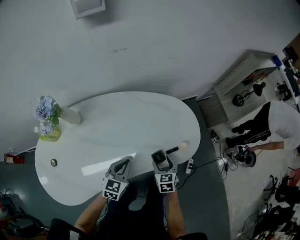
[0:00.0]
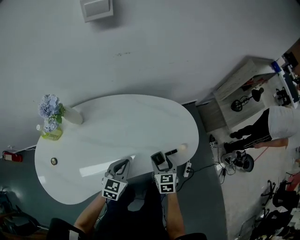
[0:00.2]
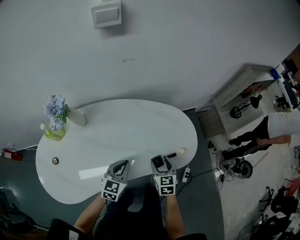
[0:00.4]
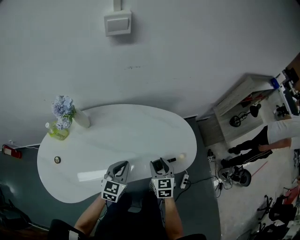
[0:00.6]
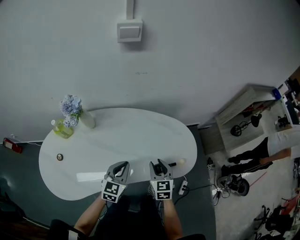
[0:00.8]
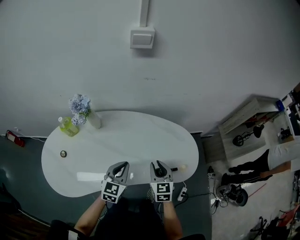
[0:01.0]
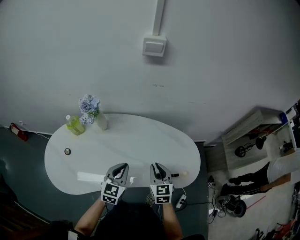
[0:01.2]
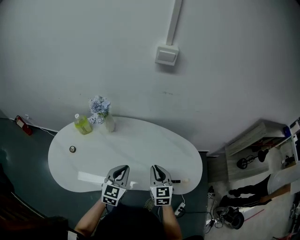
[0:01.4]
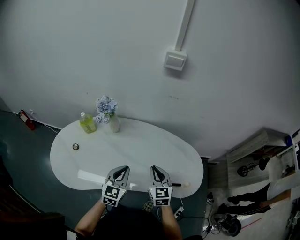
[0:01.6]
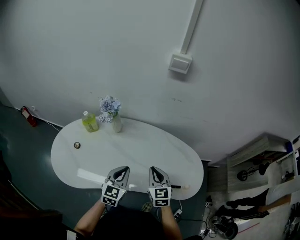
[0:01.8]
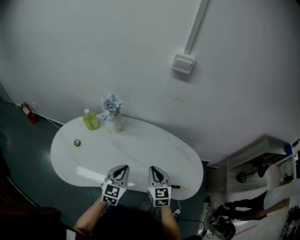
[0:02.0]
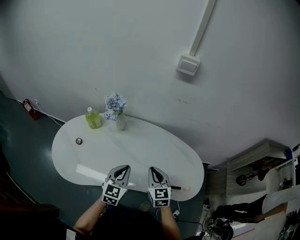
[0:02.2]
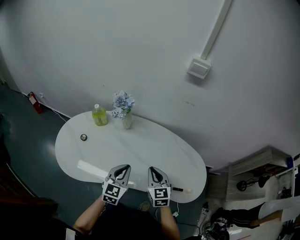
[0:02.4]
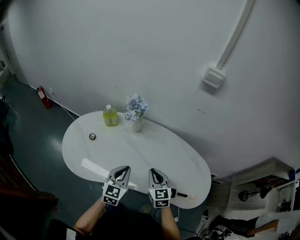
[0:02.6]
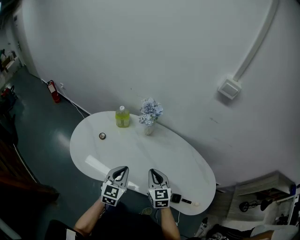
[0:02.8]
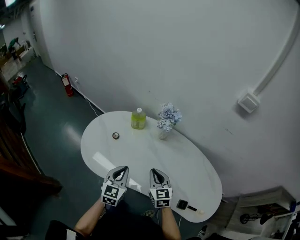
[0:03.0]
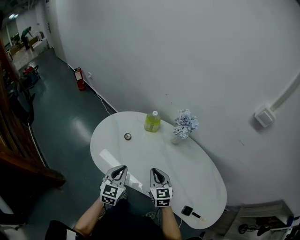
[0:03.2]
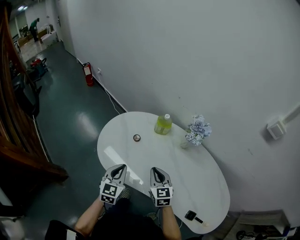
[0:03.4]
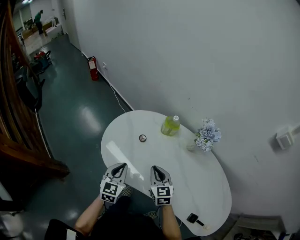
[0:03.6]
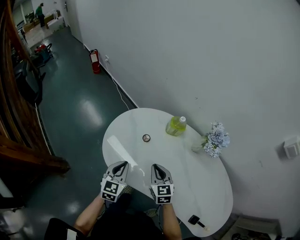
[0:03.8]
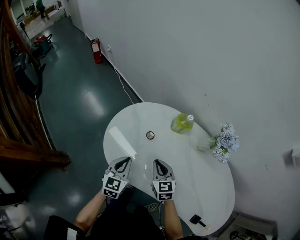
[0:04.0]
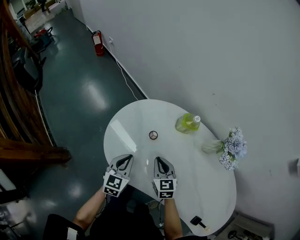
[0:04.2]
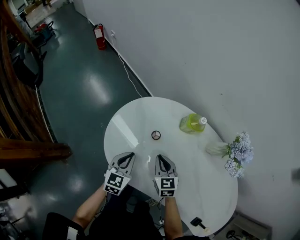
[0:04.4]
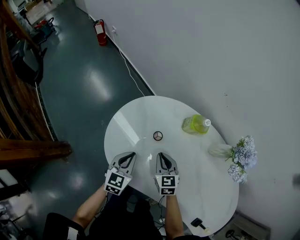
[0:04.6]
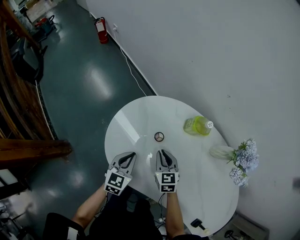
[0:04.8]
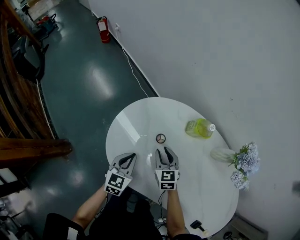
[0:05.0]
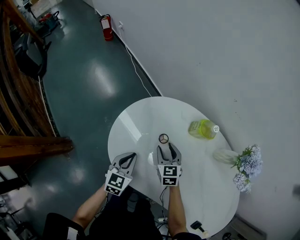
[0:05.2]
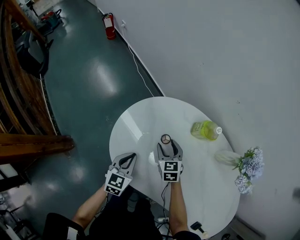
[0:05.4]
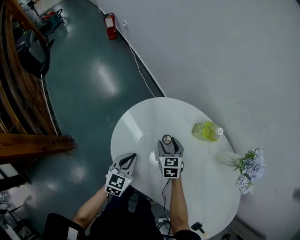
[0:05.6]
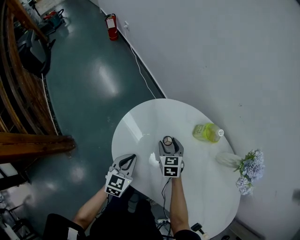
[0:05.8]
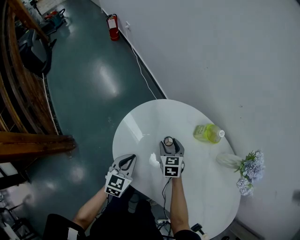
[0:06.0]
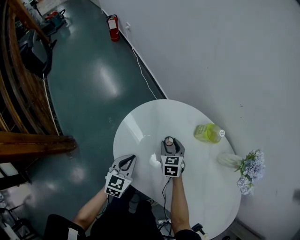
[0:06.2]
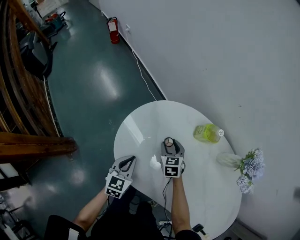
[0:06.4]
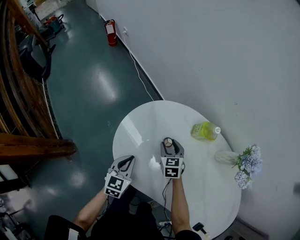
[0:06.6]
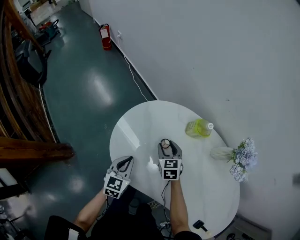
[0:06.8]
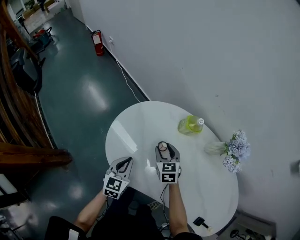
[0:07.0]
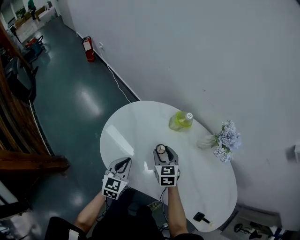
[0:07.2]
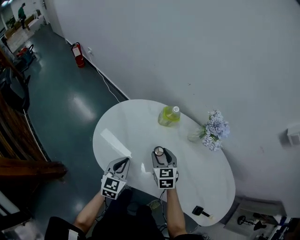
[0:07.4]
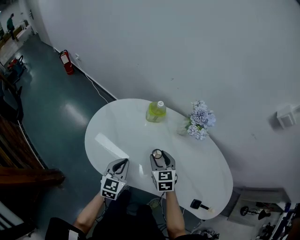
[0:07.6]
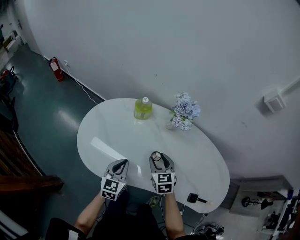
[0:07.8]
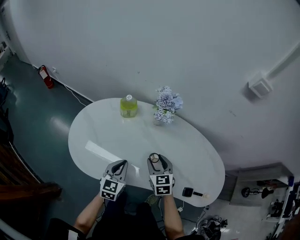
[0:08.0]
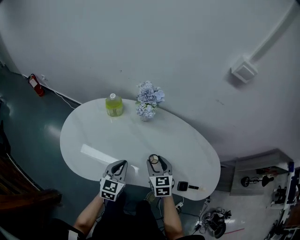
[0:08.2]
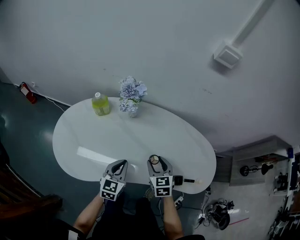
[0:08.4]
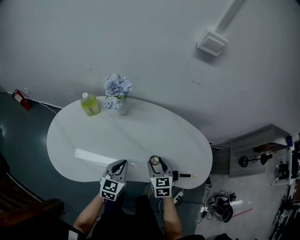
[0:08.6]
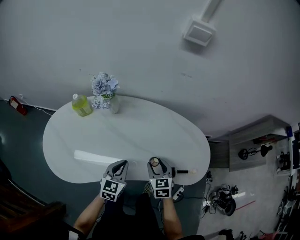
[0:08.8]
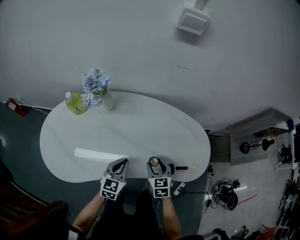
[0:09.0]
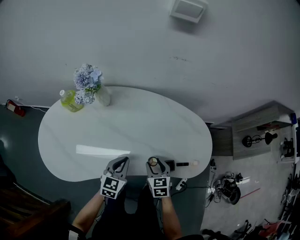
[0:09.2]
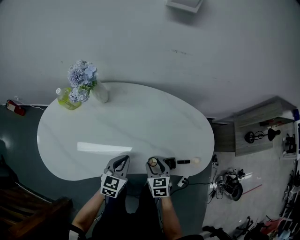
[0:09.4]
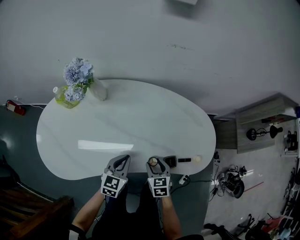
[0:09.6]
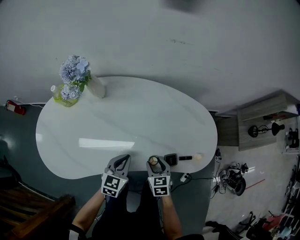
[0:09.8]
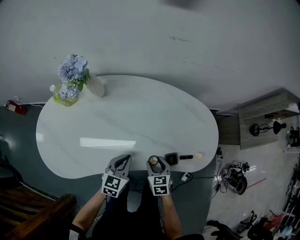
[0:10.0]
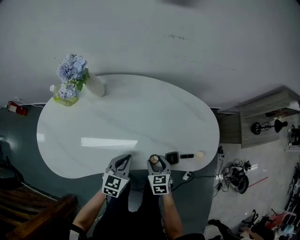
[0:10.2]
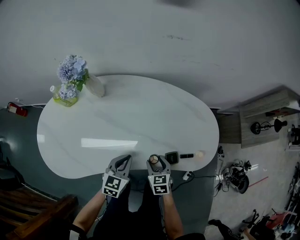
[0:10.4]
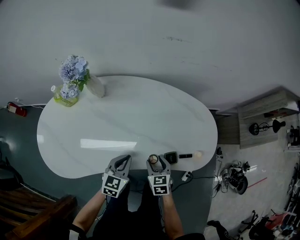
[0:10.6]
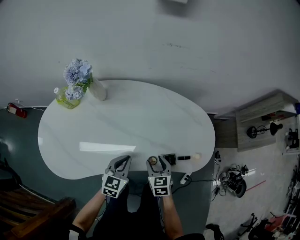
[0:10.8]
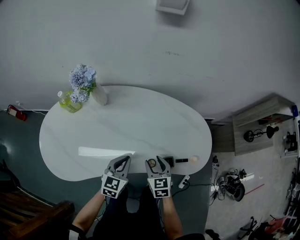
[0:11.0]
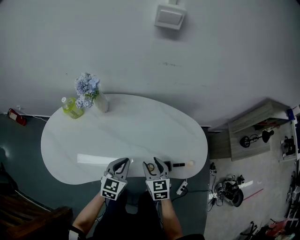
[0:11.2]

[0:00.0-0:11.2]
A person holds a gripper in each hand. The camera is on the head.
0:00.0 to 0:01.6: The two grippers go approximately 20 cm upward. The left gripper changes its angle by roughly 30 degrees. Meanwhile the right gripper turns by about 40 degrees, and closes its fingers.
0:01.6 to 0:03.2: The right gripper moves roughly 30 cm, and swivels roughly 40 degrees, while the left gripper shifts by some 30 cm, and changes its angle by about 30 degrees.
0:03.2 to 0:04.8: The grippers both shift forward, downward and to the left by about 25 cm.
0:04.8 to 0:06.4: The right gripper is displaced forward by some 5 cm, and opens up.
0:06.4 to 0:08.0: The right gripper ends up approximately 35 cm from where it was, and changes its angle by approximately 30 degrees, while the left gripper changes place by some 30 cm, and changes its angle by approximately 30 degrees.
0:08.0 to 0:09.6: The right gripper is displaced to the right and downward by some 30 cm, and swivels about 30 degrees, while the left gripper travels to the right by about 25 cm, and turns by roughly 30 degrees.
0:09.6 to 0:11.2: The right gripper travels upward by some 10 cm; the left gripper is displaced upward by about 5 cm.

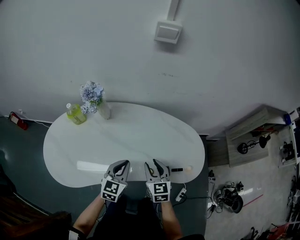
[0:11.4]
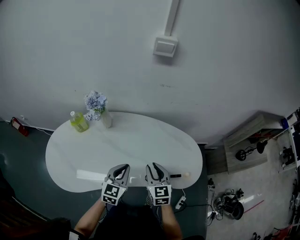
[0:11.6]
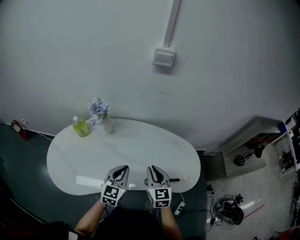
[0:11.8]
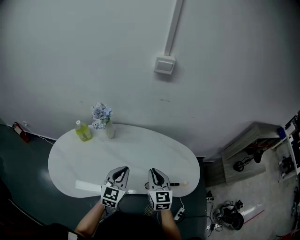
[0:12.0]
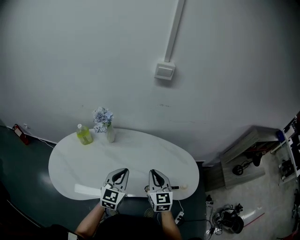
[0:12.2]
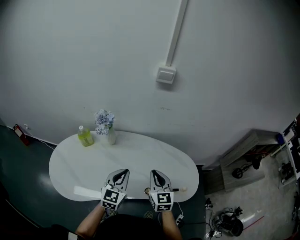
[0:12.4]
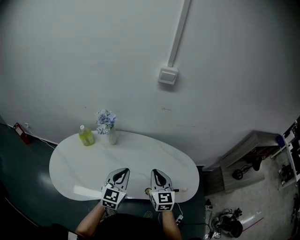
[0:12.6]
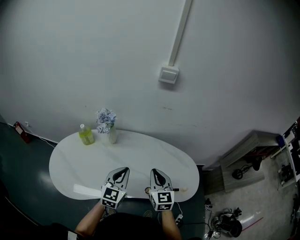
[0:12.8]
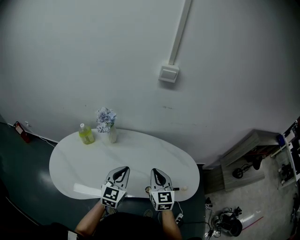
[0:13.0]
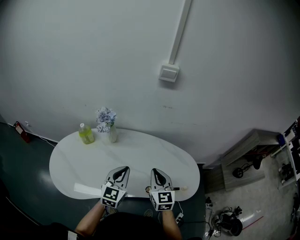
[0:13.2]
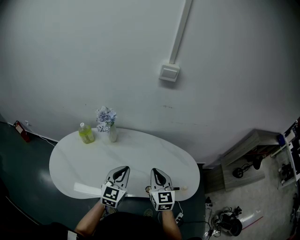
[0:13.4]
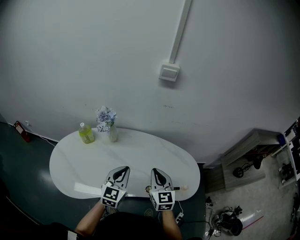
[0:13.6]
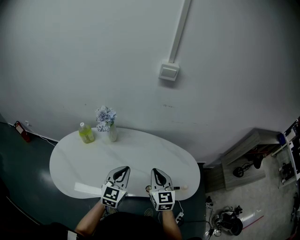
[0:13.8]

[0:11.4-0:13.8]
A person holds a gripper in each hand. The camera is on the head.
0:11.4 to 0:12.6: Both grippers travel together upward, roughly 10 cm. The right gripper closes its fingers.
0:12.6 to 0:13.8: The two grippers keep their place.

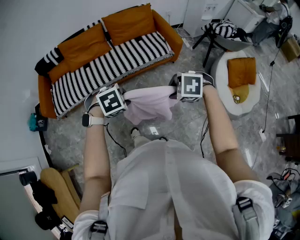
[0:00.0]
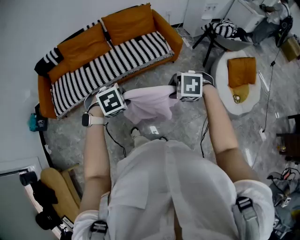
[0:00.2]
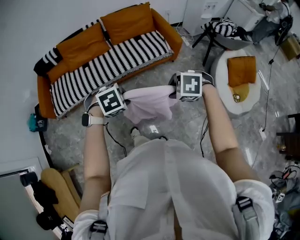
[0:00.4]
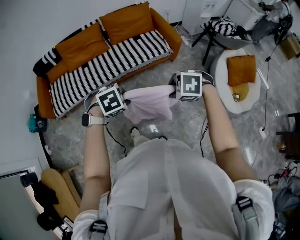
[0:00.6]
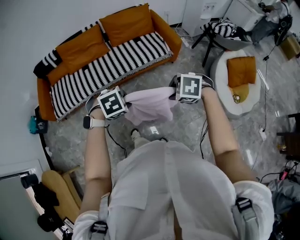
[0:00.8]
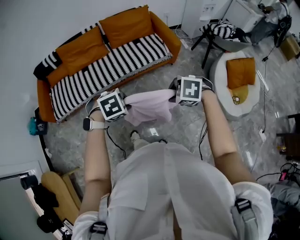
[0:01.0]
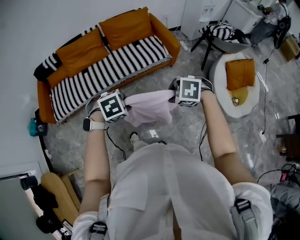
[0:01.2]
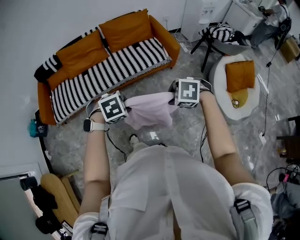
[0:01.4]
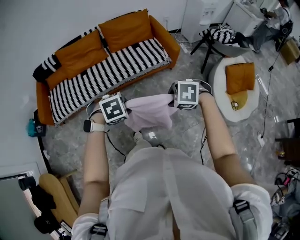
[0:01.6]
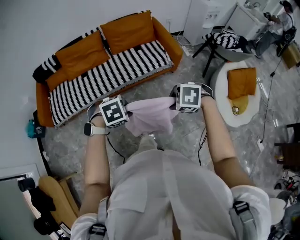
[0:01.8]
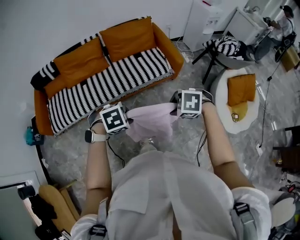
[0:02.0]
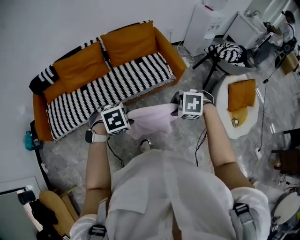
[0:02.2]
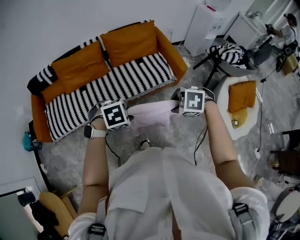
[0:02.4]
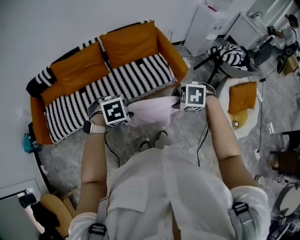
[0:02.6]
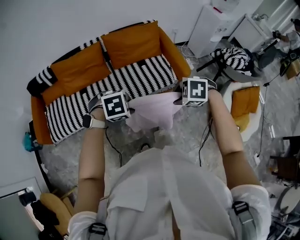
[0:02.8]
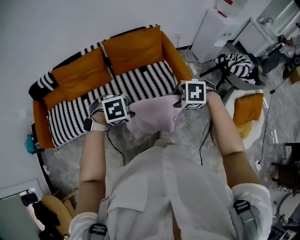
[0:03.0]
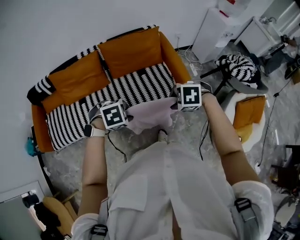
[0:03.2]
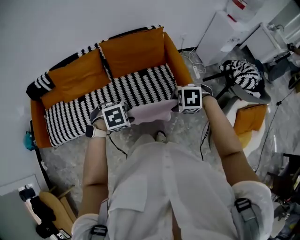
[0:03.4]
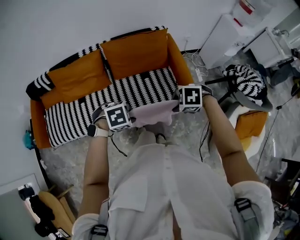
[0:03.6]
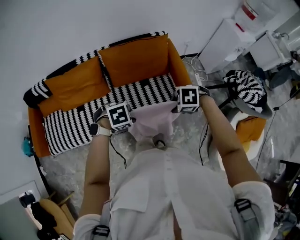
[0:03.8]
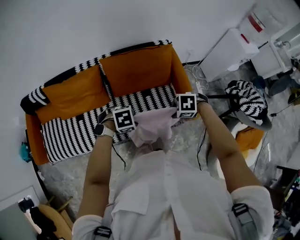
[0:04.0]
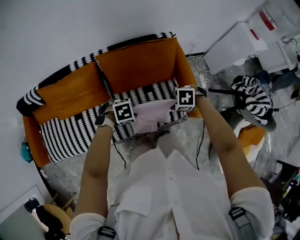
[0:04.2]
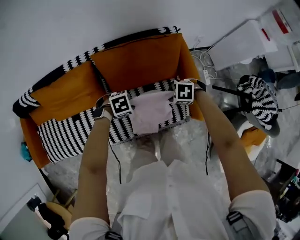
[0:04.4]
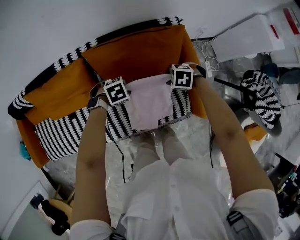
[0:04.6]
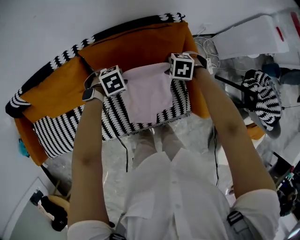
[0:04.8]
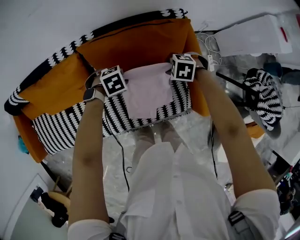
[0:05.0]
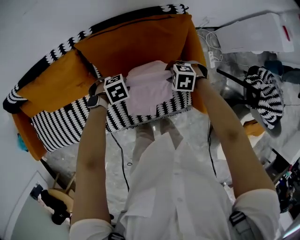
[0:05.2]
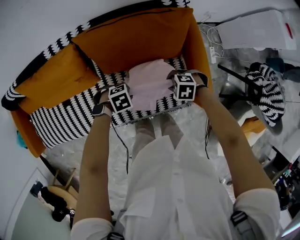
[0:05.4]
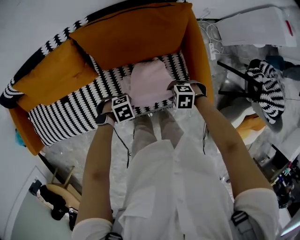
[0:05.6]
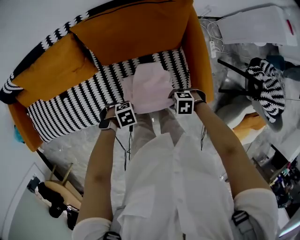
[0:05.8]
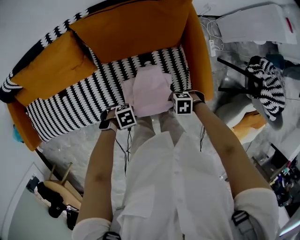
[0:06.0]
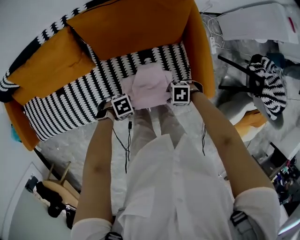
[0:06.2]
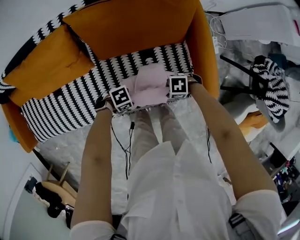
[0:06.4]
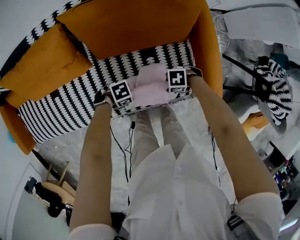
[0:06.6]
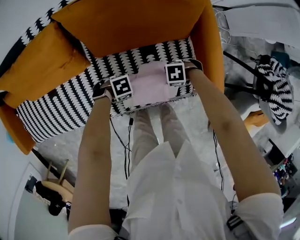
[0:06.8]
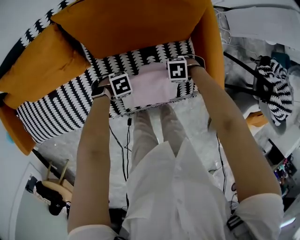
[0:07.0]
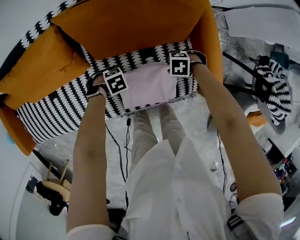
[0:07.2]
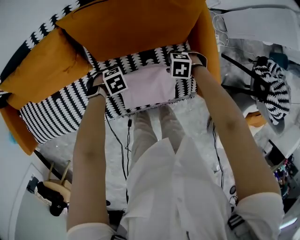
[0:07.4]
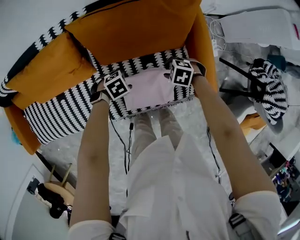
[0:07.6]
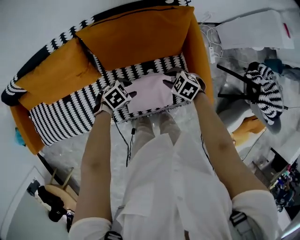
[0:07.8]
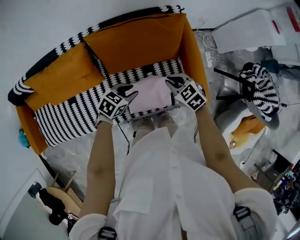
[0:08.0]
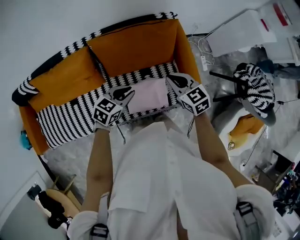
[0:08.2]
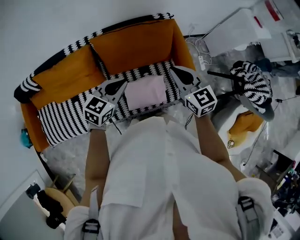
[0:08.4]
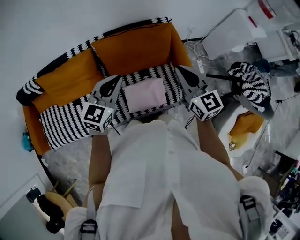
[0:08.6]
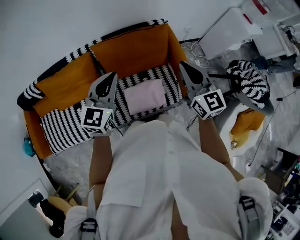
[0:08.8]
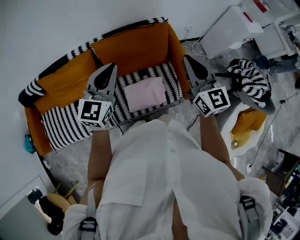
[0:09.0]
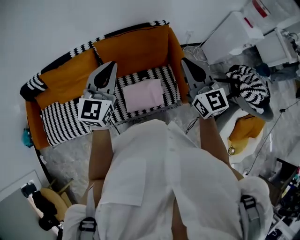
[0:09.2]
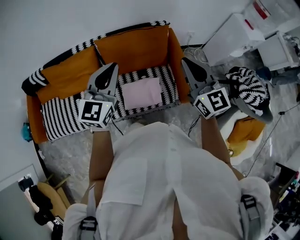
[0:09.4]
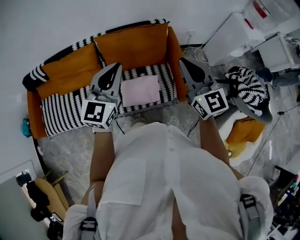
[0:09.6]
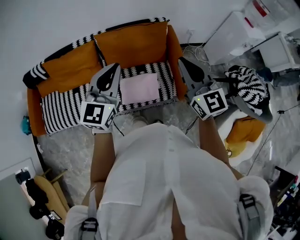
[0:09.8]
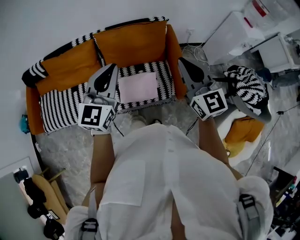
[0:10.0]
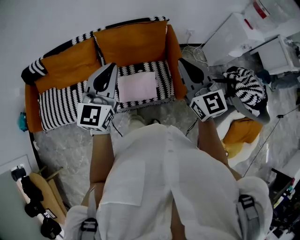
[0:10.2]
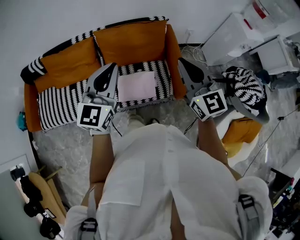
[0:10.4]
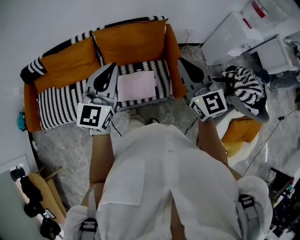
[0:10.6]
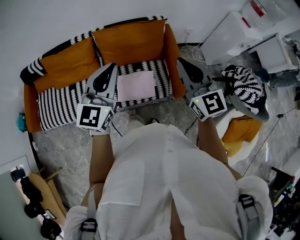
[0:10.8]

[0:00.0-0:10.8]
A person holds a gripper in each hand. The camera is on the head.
0:00.0 to 0:01.6: The grippers make only small movements.
0:01.6 to 0:03.0: The right gripper shifts by about 35 cm. Meanwhile the left gripper shifts by about 30 cm.
0:03.0 to 0:04.6: The two grippers travel together, backward, approximately 50 cm. The grippers both shift downward by some 25 cm.
0:04.6 to 0:06.2: The grippers both shift forward and downward by roughly 25 cm. The left gripper swivels some 20 degrees. Meanwhile the right gripper changes its angle by about 20 degrees.
0:06.2 to 0:07.8: The right gripper changes place by some 20 cm, and changes its angle by some 40 degrees. Meanwhile the left gripper moves approximately 20 cm, rotates approximately 30 degrees, and opens up.
0:07.8 to 0:09.2: The grippers both shift upward by about 50 cm. The left gripper tilts its fingers approximately 50 degrees upward, and closes up. The right gripper tilts its fingers approximately 60 degrees upward, and closes.
0:09.2 to 0:10.8: Both grippers travel together backward, some 10 cm.
